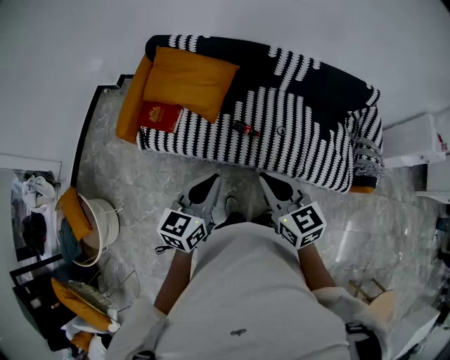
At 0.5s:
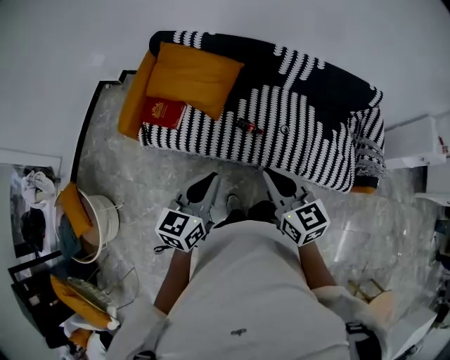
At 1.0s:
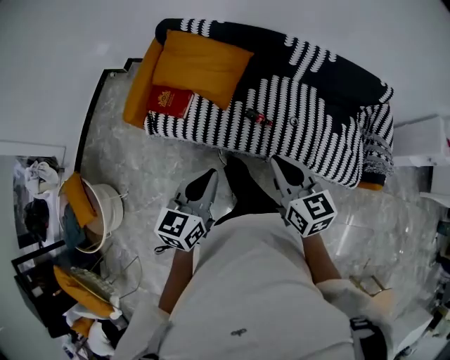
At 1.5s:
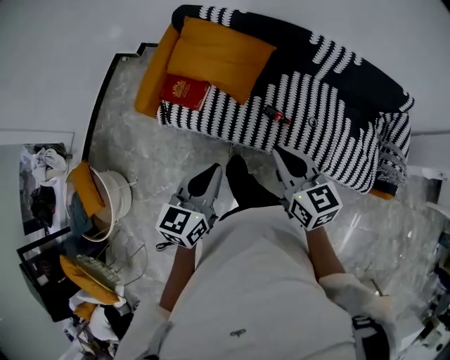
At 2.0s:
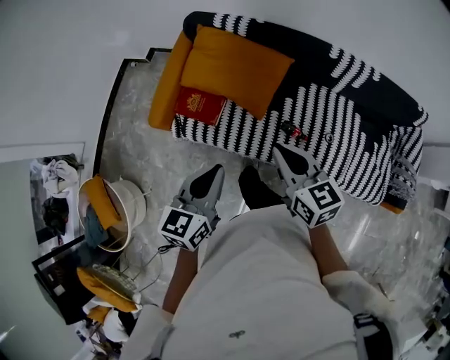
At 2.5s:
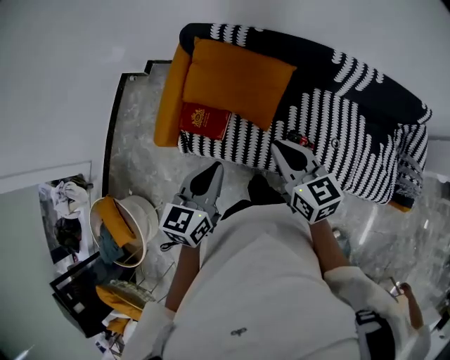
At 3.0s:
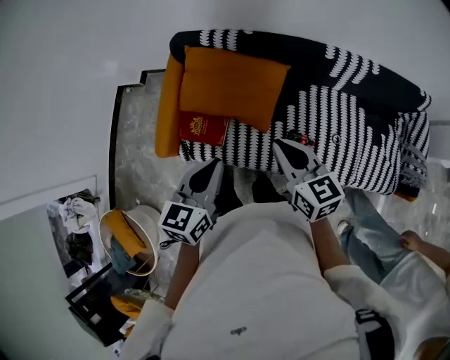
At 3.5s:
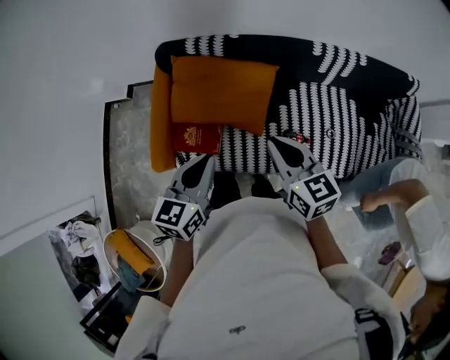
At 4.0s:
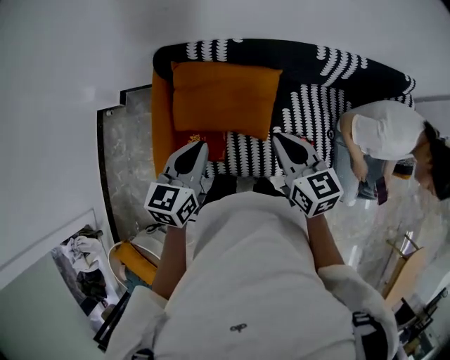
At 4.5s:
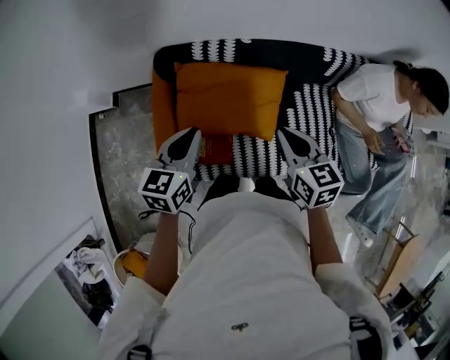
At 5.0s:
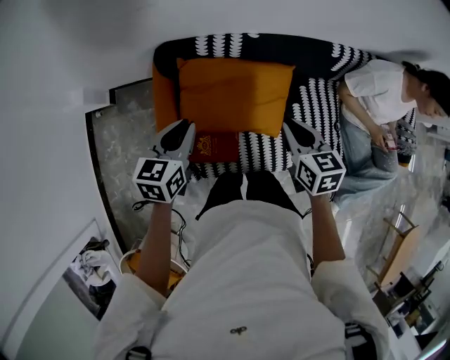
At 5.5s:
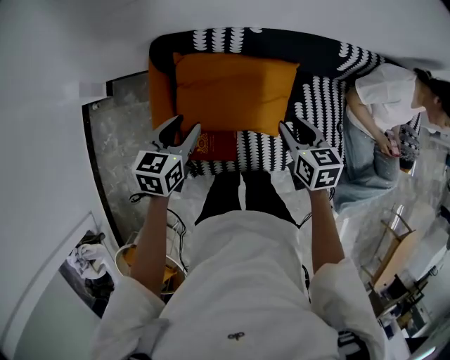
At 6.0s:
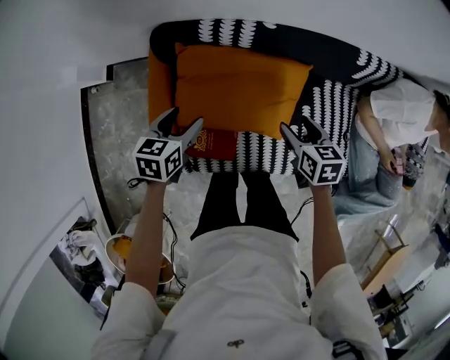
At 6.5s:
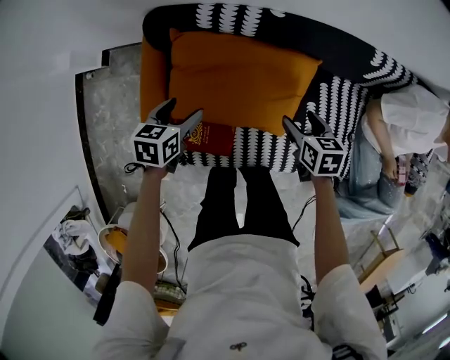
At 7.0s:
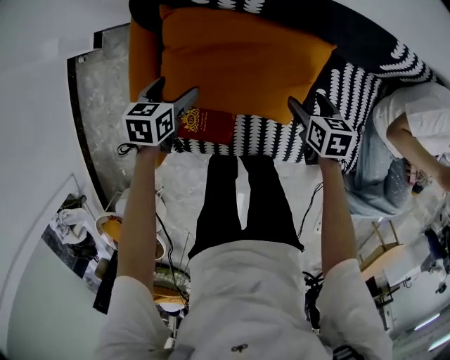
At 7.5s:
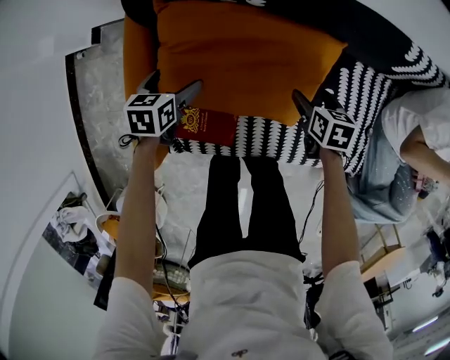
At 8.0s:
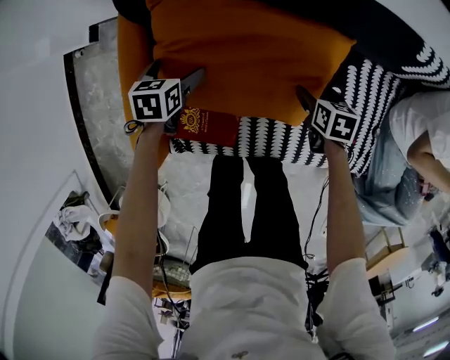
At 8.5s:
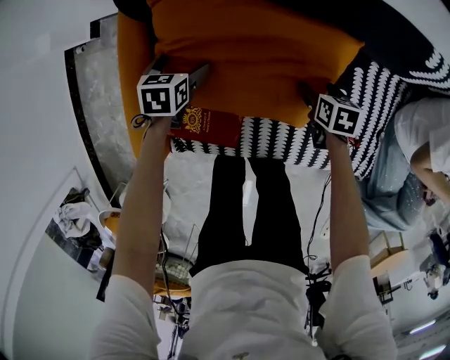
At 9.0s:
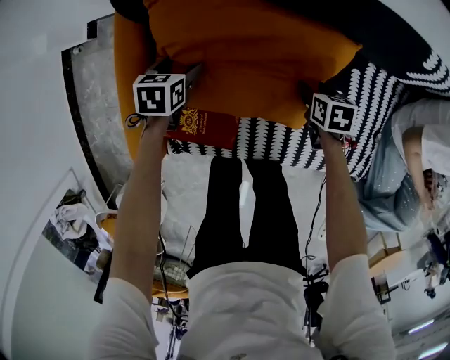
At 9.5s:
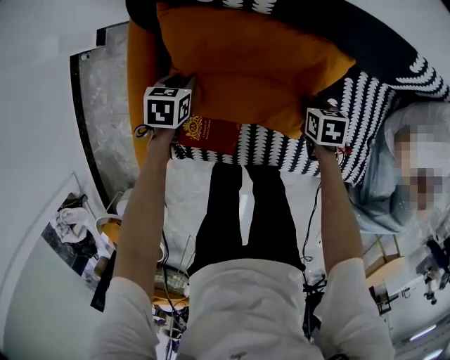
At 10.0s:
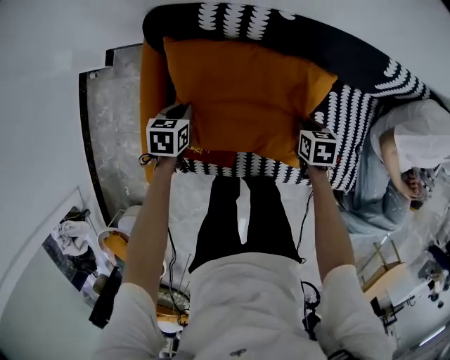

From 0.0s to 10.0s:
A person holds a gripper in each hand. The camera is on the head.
From 0.0s to 2.0s: The left gripper goes approximately 20 cm to the left and forward; the right gripper heads forward and to the left, covering some 25 cm.
From 2.0s to 4.0s: The left gripper travels forward and to the left by approximately 30 cm. Meanwhile the right gripper heads forward, covering approximately 20 cm, and rotates some 20 degrees.
From 4.0s to 6.0s: The left gripper travels downward, forward and to the left by roughly 30 cm, turns by some 20 degrees, and opens its fingers. Meanwhile the right gripper moves downward and forward, approximately 25 cm, changes its angle by some 30 degrees, and opens up.
From 6.0s to 8.0s: Both grippers move downward, about 25 cm. The left gripper opens up.
From 8.0s to 10.0s: Both grippers travel together upward, about 5 cm. The left gripper closes its fingers. Meanwhile the right gripper closes up.

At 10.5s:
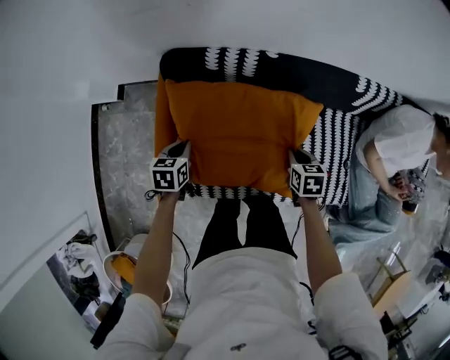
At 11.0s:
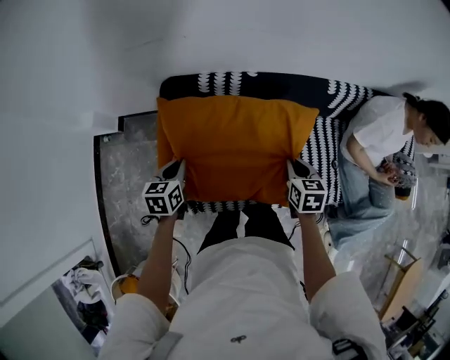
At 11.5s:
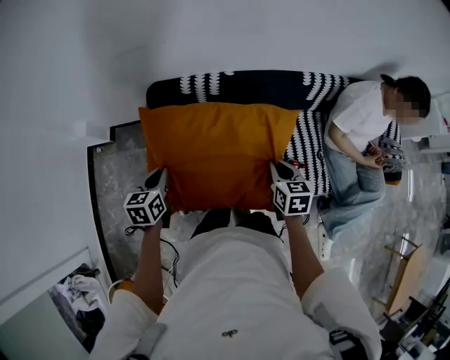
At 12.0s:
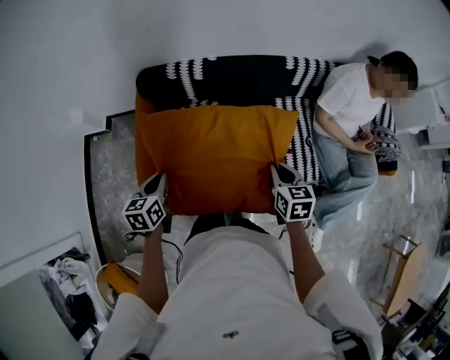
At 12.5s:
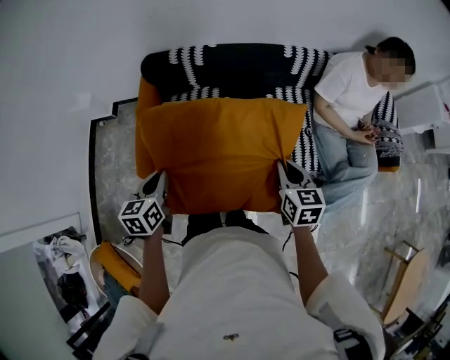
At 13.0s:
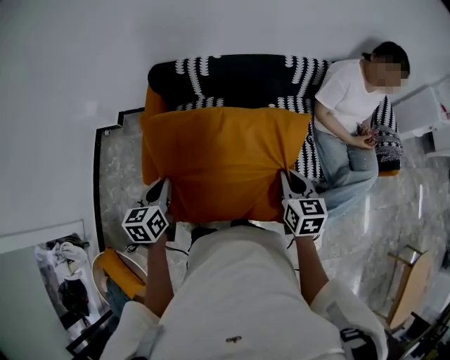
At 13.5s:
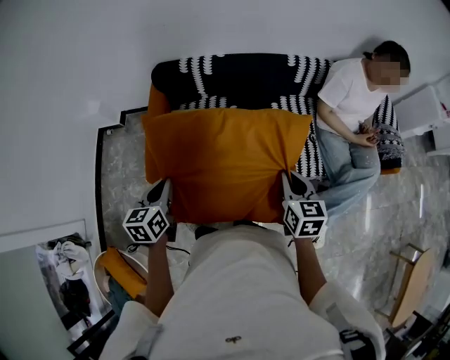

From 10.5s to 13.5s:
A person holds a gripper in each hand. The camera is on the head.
From 10.5s to 12.0s: Both grippers travel together backward, upward and to the right, approximately 30 cm. The right gripper rotates roughly 20 degrees.
From 12.0s to 13.5s: The two grippers go some 15 cm backward and upward.

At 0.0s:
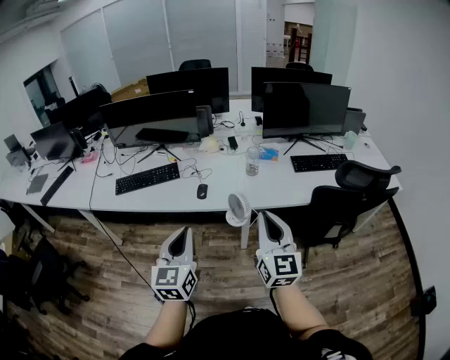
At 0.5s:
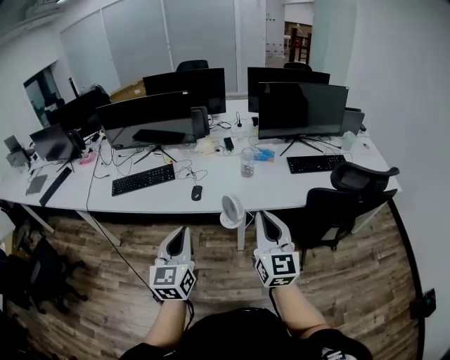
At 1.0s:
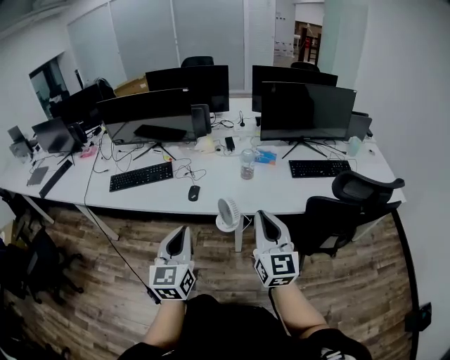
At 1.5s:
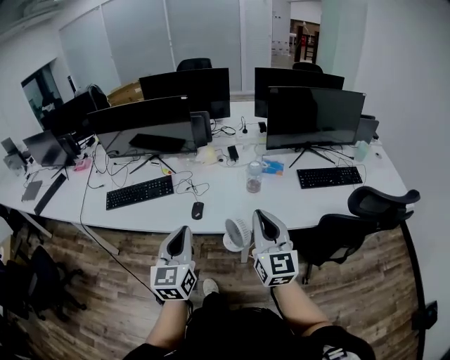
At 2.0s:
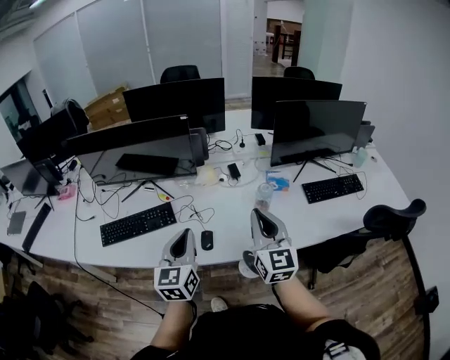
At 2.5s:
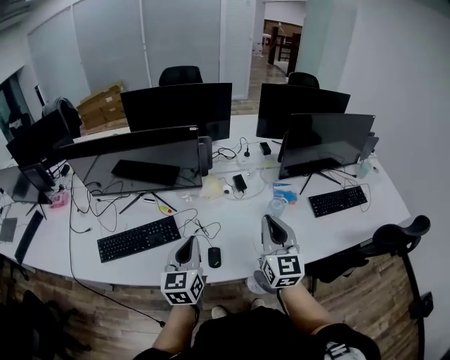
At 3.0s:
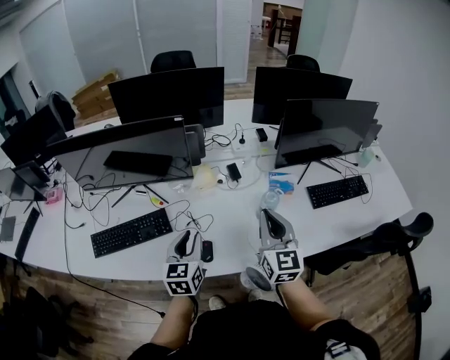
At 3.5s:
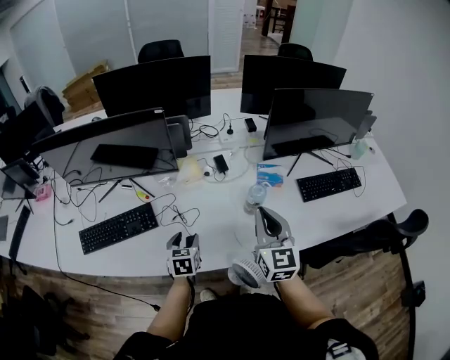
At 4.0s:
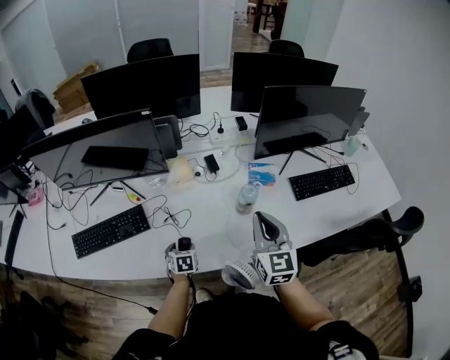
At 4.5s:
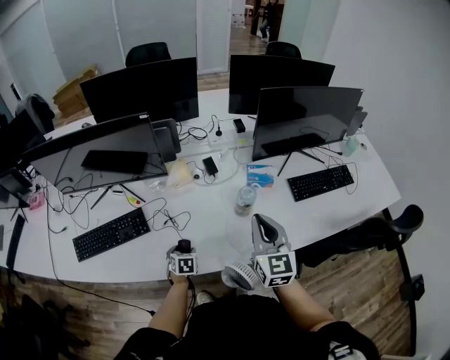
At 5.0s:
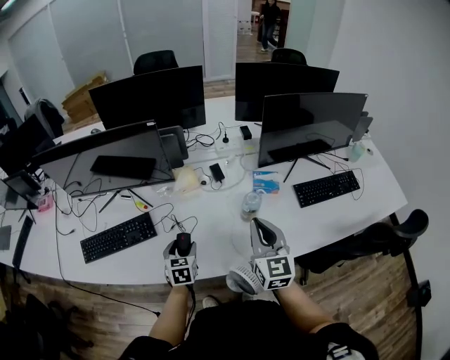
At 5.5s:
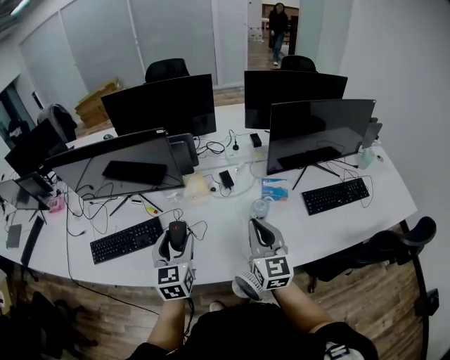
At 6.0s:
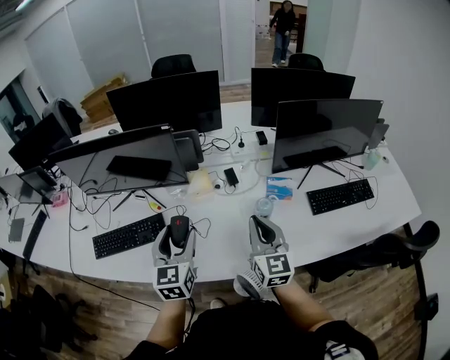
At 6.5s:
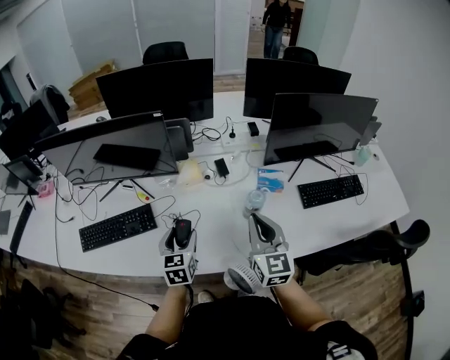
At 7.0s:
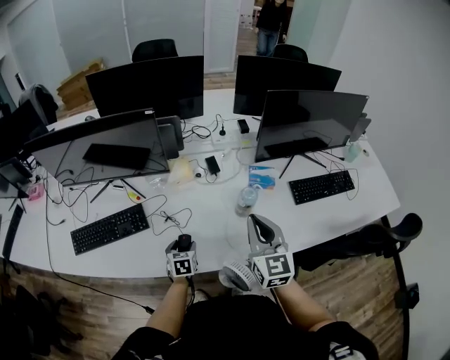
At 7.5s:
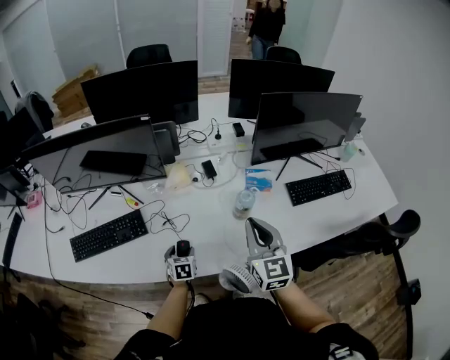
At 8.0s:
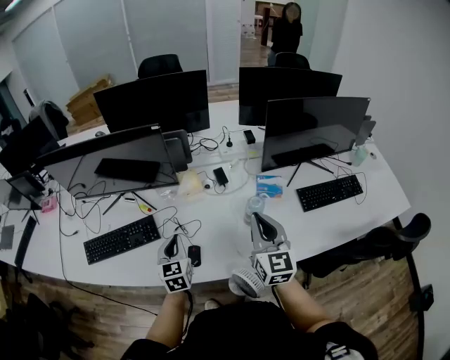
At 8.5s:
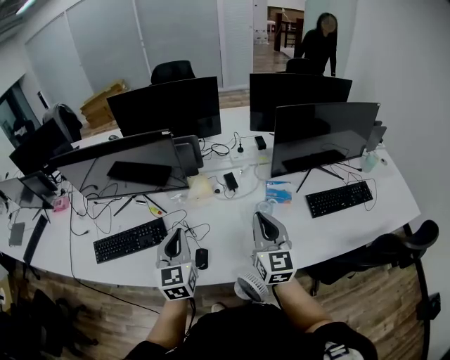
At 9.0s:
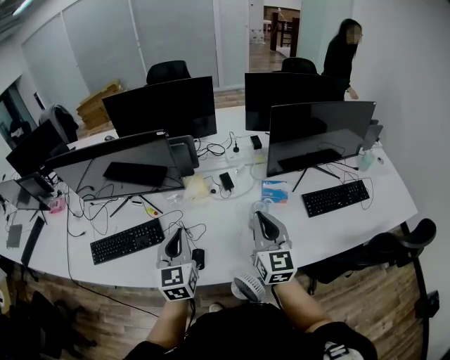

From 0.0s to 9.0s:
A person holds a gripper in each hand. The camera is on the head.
From 0.0s to 2.0s: The two grippers go roughly 30 cm forward.
From 2.0s to 4.5s: The left gripper travels downward by some 35 cm, tips its fingers downward by some 50 degrees, and opens; the right gripper is displaced forward, downward and to the right by approximately 15 cm.
From 4.5s to 7.0s: The left gripper reaches approximately 35 cm upward, then returns.
From 7.0s to 9.0s: The left gripper goes some 30 cm upward, tilts its fingers about 40 degrees upward, and closes.

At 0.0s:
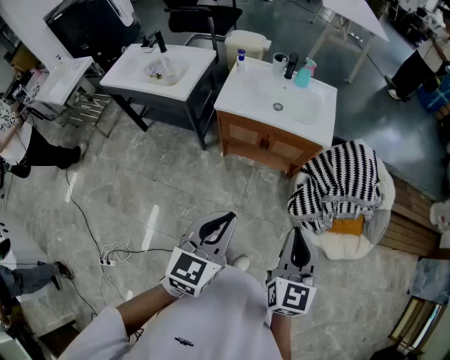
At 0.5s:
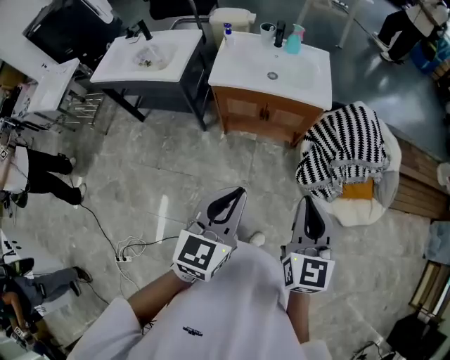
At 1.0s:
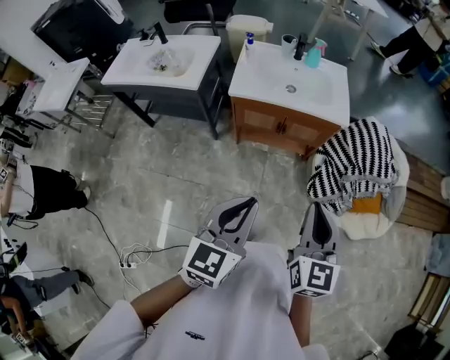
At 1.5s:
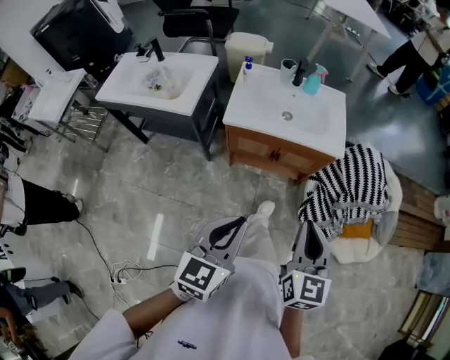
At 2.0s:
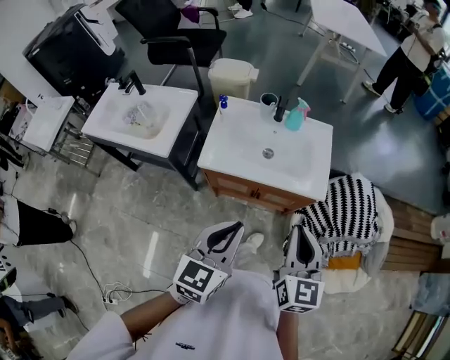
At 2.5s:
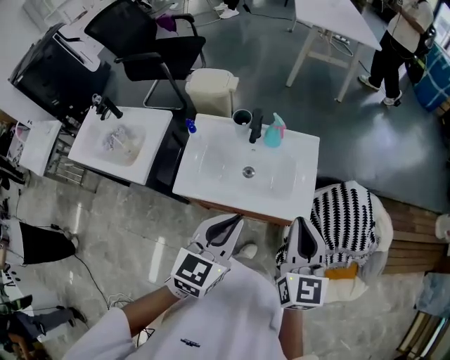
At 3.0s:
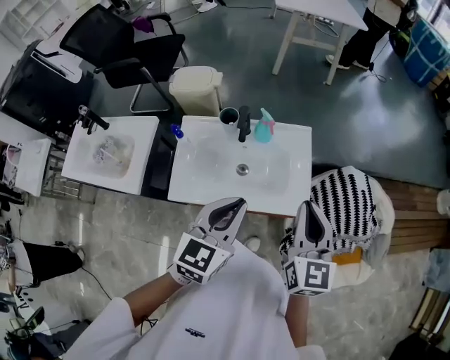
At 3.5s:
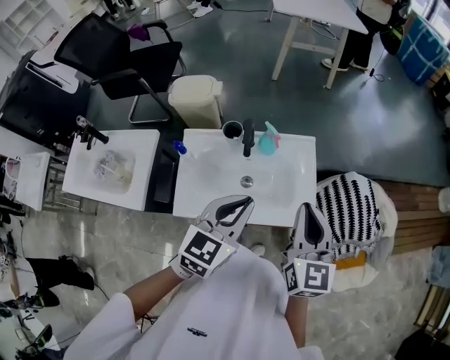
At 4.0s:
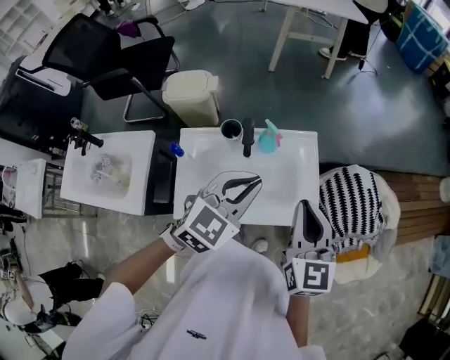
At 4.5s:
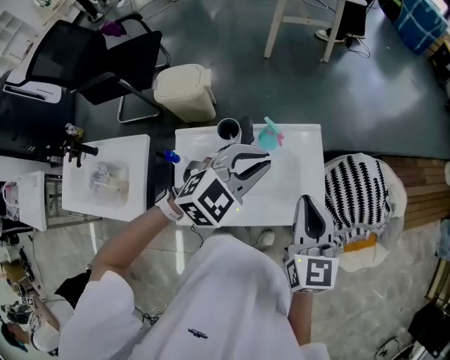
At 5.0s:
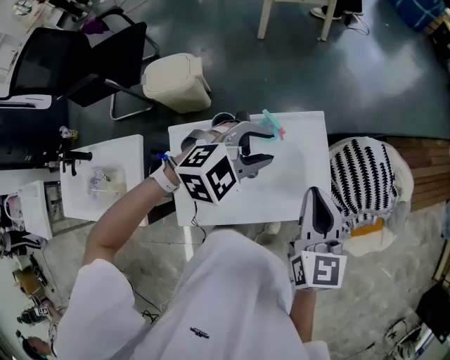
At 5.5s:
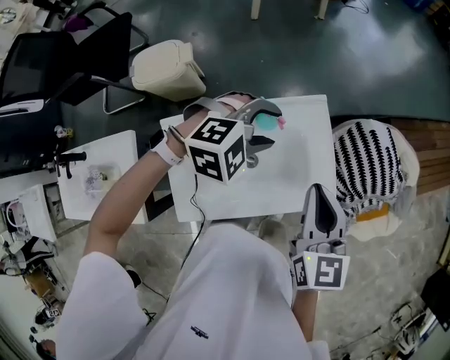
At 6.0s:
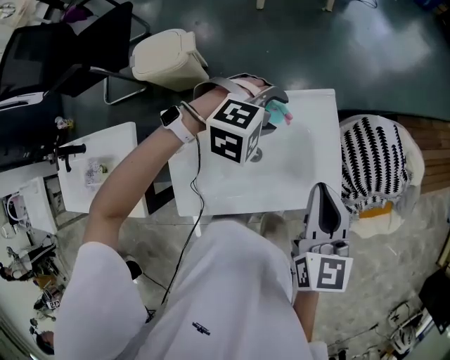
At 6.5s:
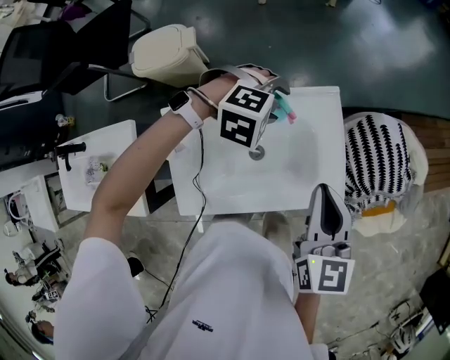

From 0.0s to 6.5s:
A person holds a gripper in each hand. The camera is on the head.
From 0.0s to 2.0s: The grippers both shift forward by about 25 cm.
From 2.0s to 4.5s: Both grippers move forward, some 35 cm. The left gripper changes its angle by some 60 degrees.
From 4.5s to 6.5s: The right gripper heads downward, covering approximately 5 cm; the left gripper is displaced downward and forward by roughly 20 cm, tips its fingers downward by some 30 degrees, and opens up.
